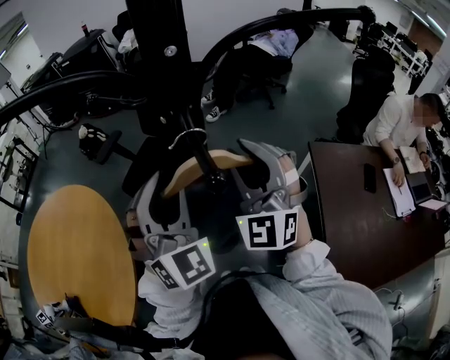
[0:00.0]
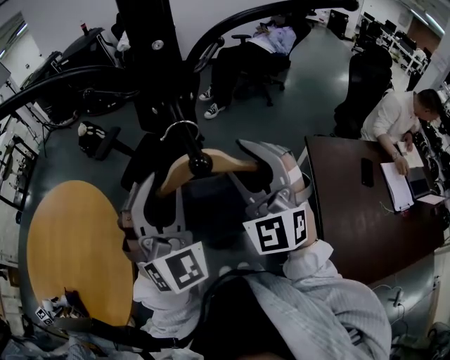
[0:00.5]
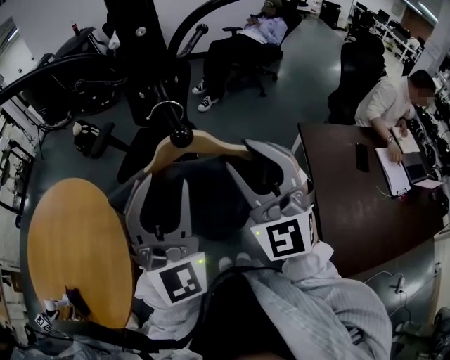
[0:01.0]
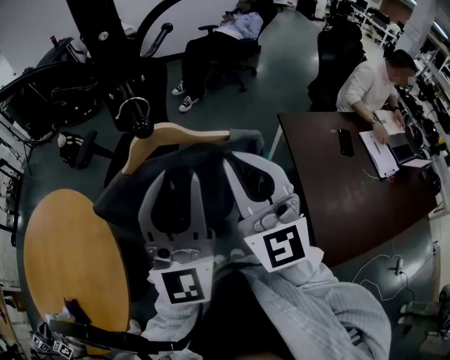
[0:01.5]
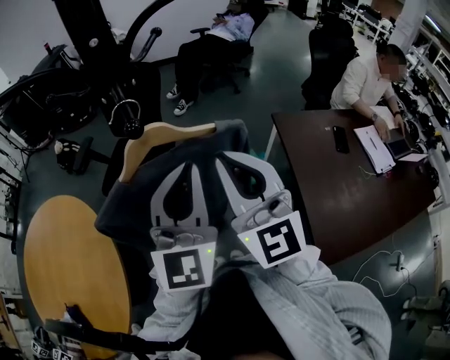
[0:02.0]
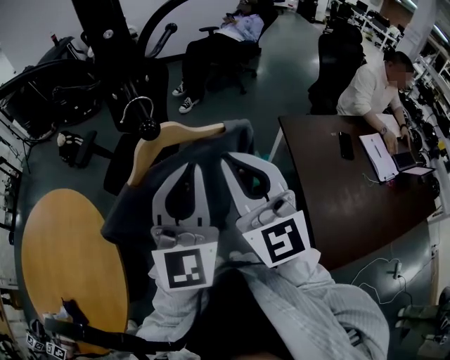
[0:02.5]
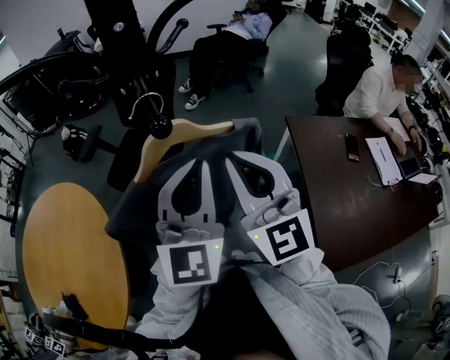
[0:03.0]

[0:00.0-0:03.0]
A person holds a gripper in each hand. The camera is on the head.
0:00.0 to 0:01.5: The right gripper moves backward, about 15 cm, swivels roughly 30 degrees, and closes. Meanwhile the left gripper shifts about 15 cm backward, to the right and upward, and rotates some 50 degrees.
0:01.5 to 0:03.0: The left gripper ends up about 5 cm from where it was, and closes up.

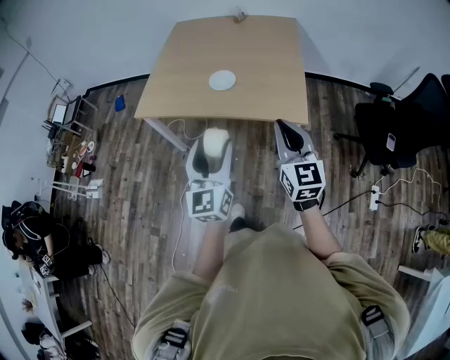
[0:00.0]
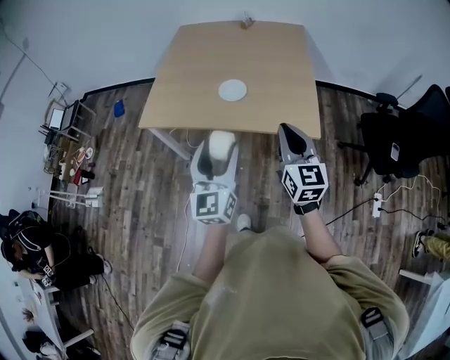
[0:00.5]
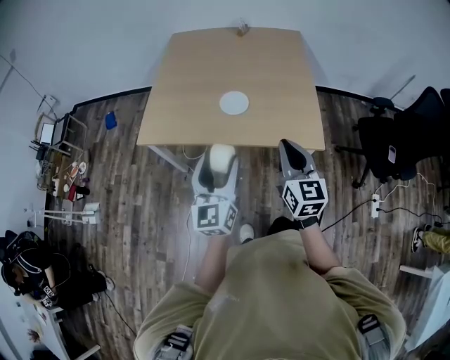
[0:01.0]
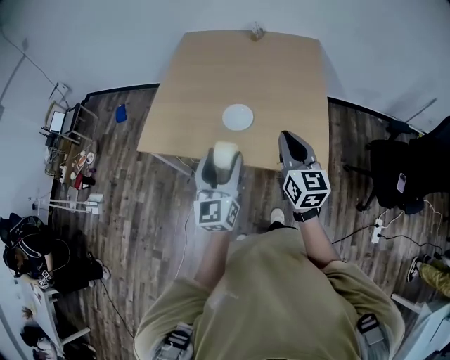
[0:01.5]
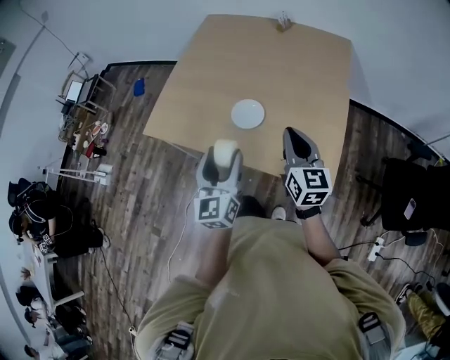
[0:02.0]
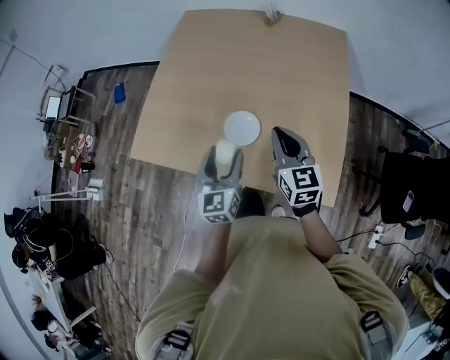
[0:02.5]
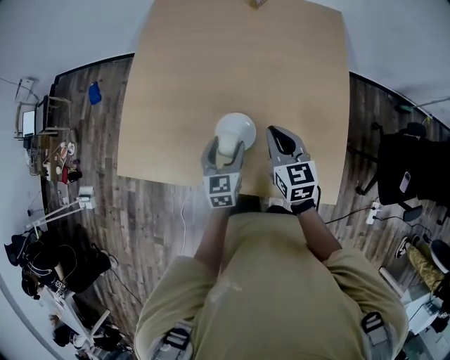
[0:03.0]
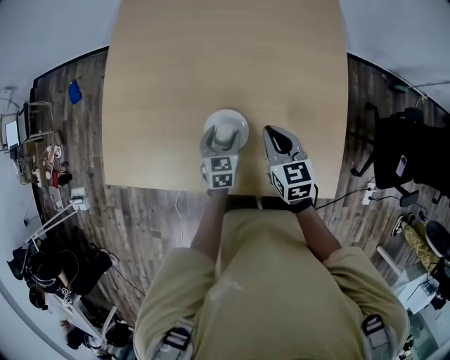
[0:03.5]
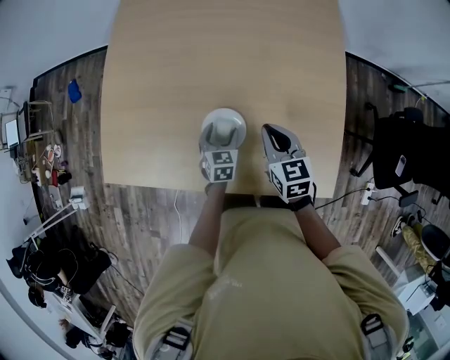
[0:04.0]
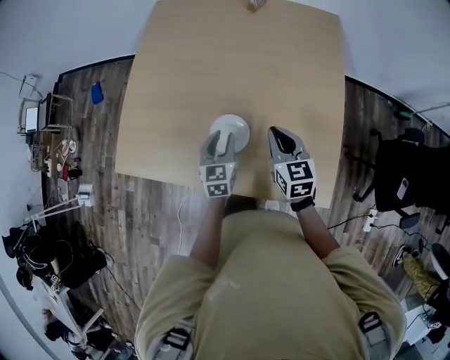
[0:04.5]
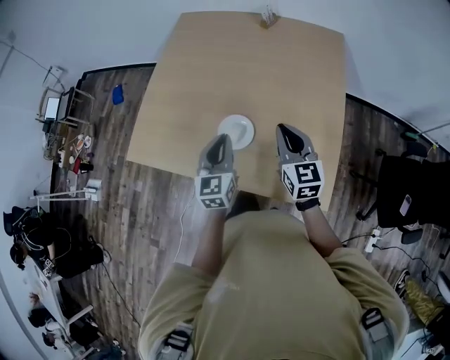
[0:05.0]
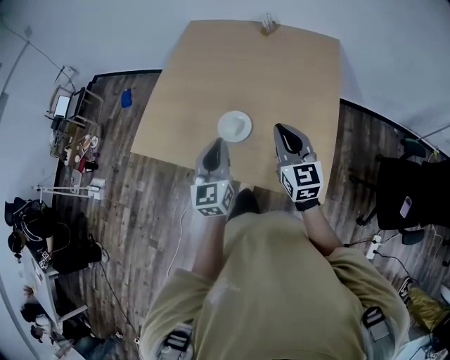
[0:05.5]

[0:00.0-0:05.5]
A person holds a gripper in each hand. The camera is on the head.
0:00.0 to 0:02.0: The grippers both shift forward by approximately 35 cm.
0:02.0 to 0:03.5: The right gripper is displaced backward by about 15 cm, and swivels some 20 degrees. The left gripper travels downward and to the right by about 20 cm, and tips its fingers downward by roughly 30 degrees.
0:03.5 to 0:05.5: The right gripper shifts approximately 10 cm forward and upward, and turns by some 30 degrees. Meanwhile the left gripper goes approximately 15 cm upward, swivels about 30 degrees, and closes.

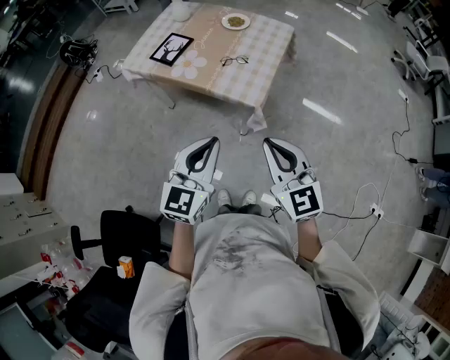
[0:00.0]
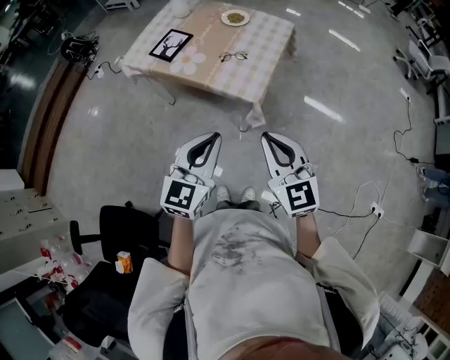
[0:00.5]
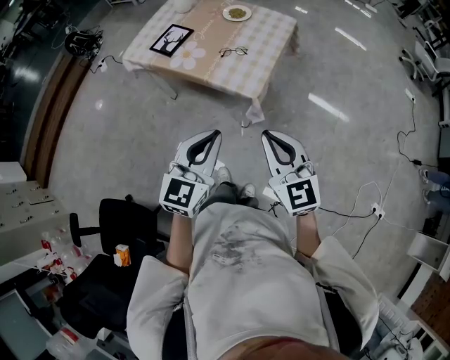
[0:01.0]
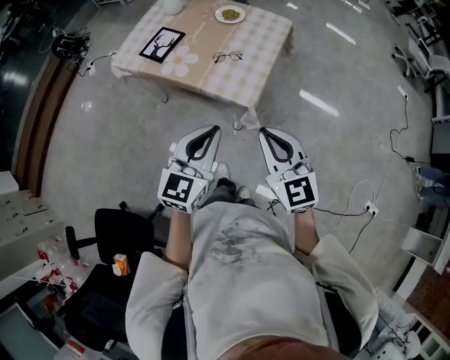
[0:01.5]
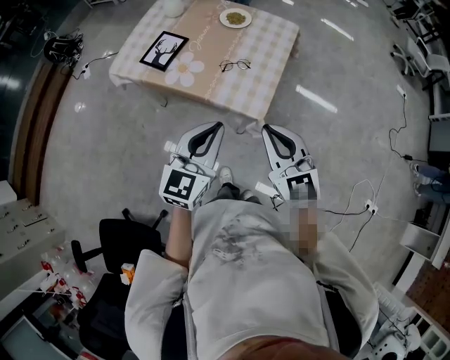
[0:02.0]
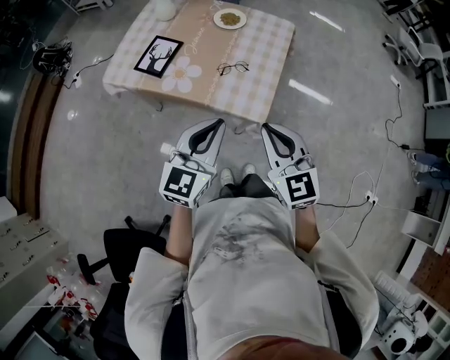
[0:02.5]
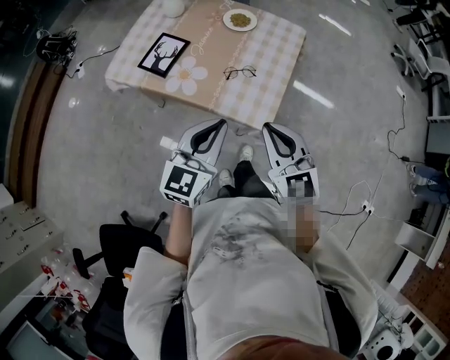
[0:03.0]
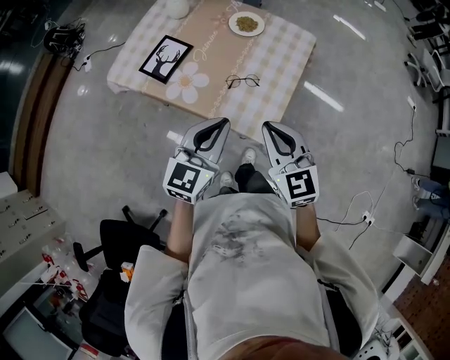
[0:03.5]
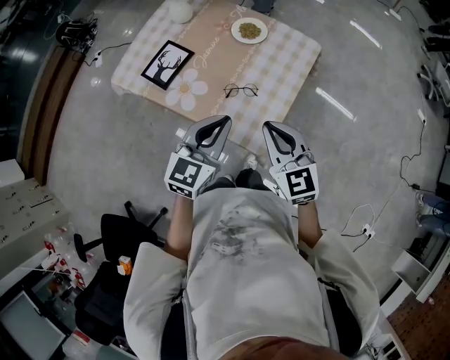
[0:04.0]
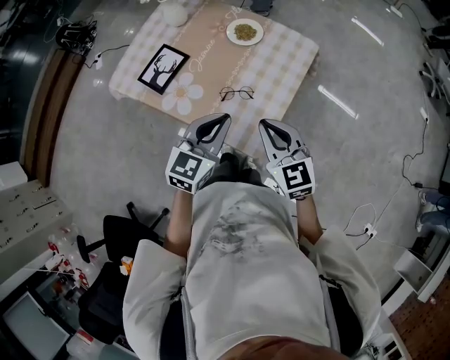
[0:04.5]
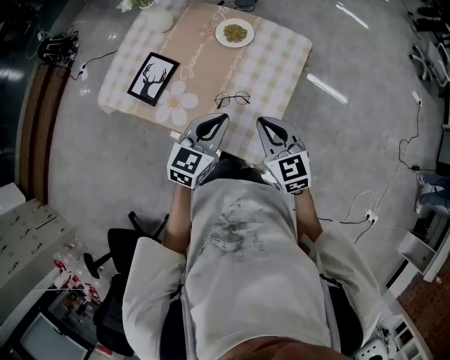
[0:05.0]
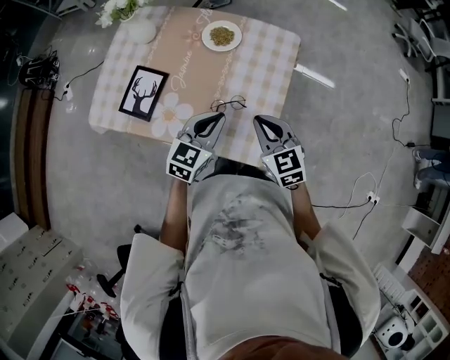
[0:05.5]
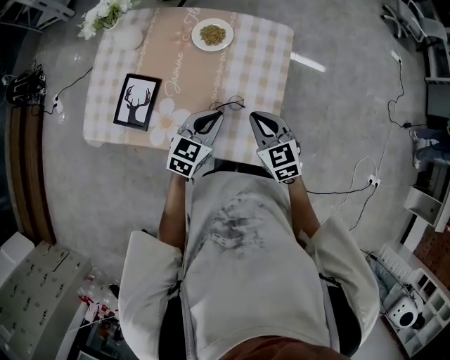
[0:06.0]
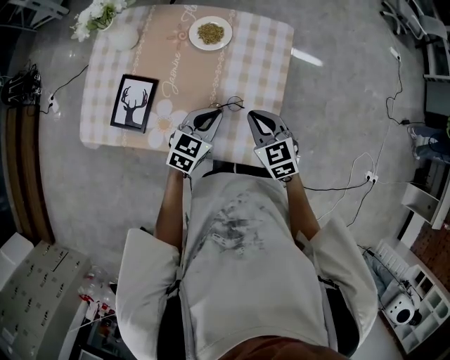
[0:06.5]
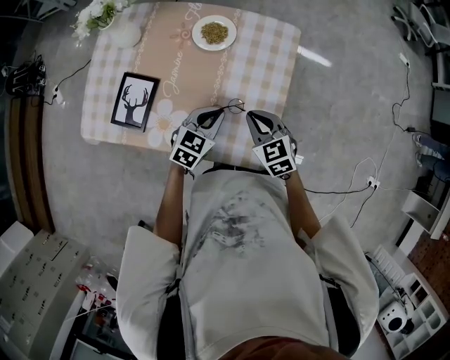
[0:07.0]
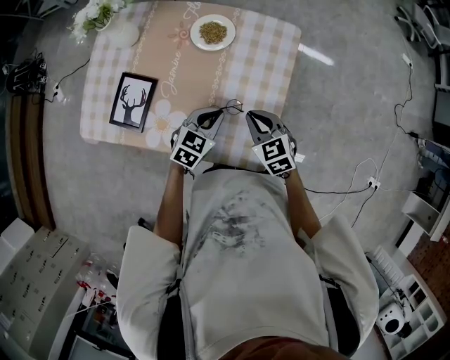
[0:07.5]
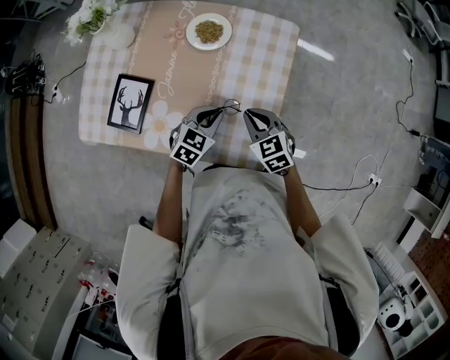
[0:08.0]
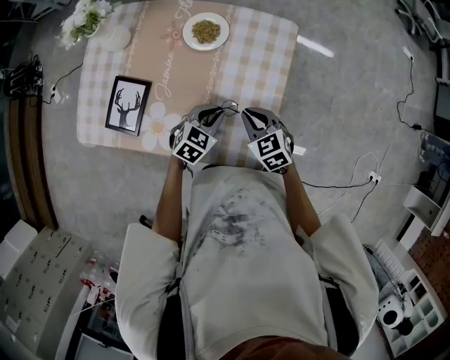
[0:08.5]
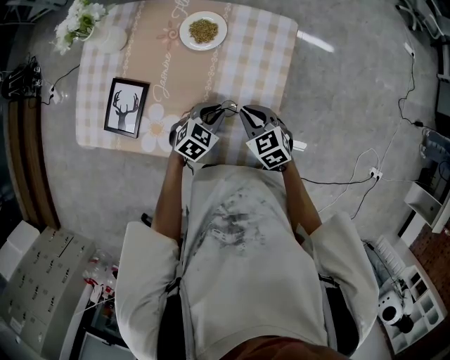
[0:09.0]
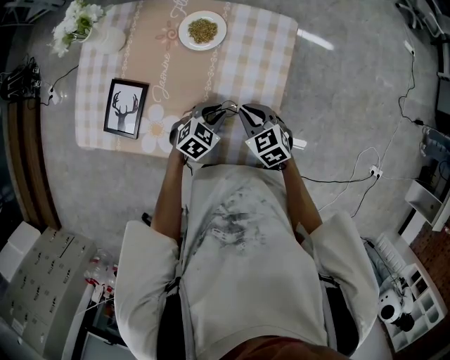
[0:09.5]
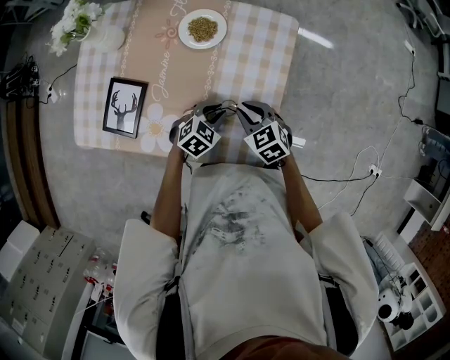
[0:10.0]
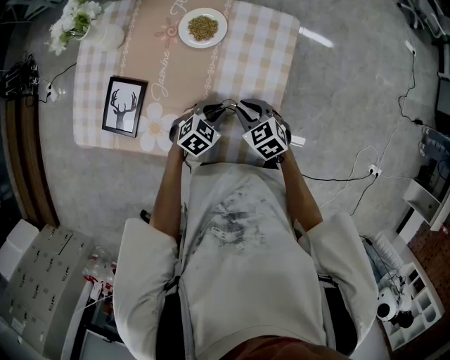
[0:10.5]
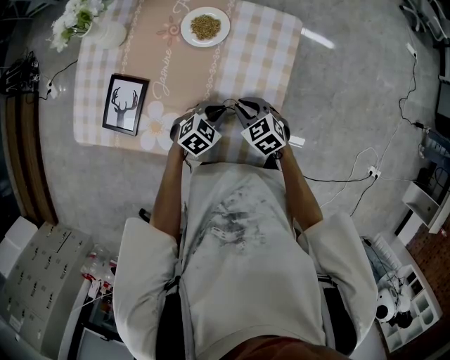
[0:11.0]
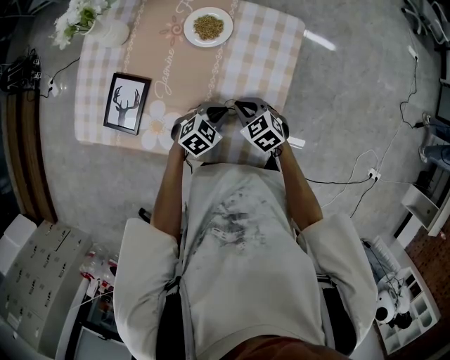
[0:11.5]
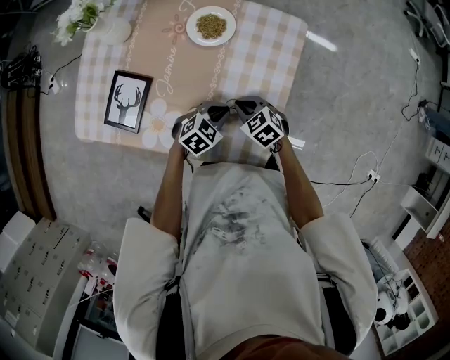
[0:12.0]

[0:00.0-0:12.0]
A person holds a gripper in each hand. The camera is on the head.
0:00.0 to 0:02.0: The grippers both shift forward by about 15 cm.
0:02.0 to 0:04.0: The two grippers go about 20 cm forward.
0:04.0 to 0:06.0: The grippers both shift downward and forward by roughly 20 cm. The right gripper swivels about 20 degrees; the left gripper turns by about 30 degrees.
0:06.0 to 0:08.0: Both grippers move downward, roughly 10 cm.
0:08.0 to 0:10.0: The left gripper goes approximately 5 cm downward.
0:10.0 to 0:12.0: The right gripper shifts roughly 5 cm downward.

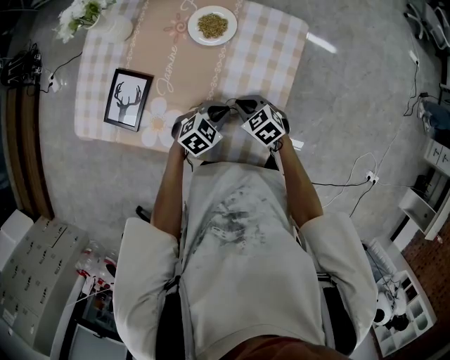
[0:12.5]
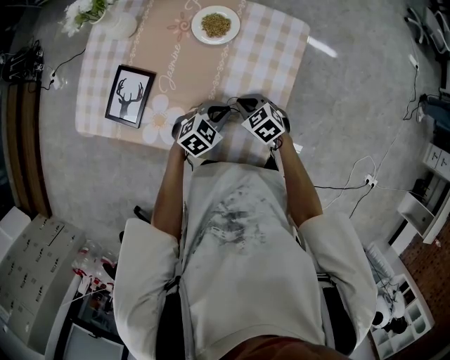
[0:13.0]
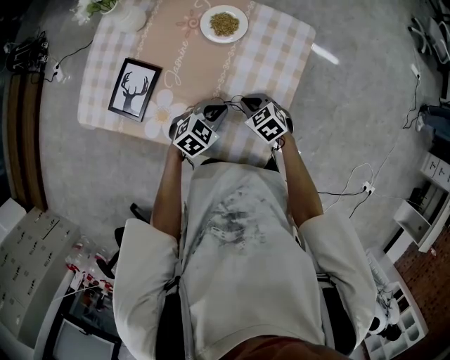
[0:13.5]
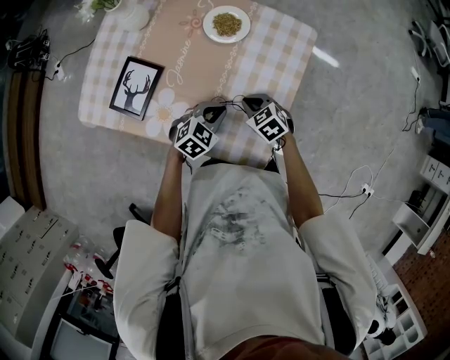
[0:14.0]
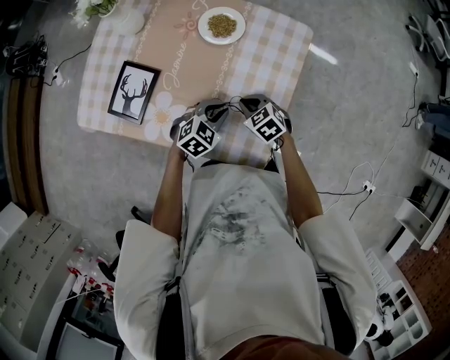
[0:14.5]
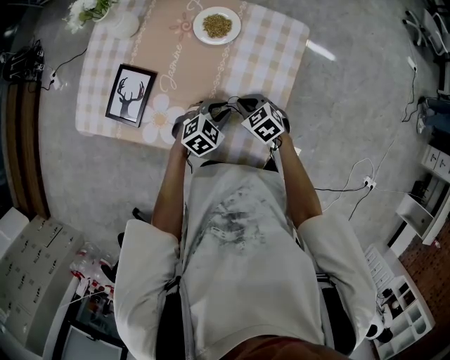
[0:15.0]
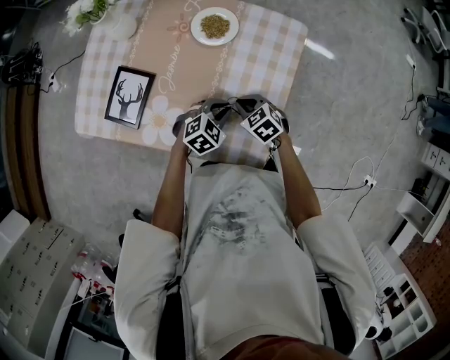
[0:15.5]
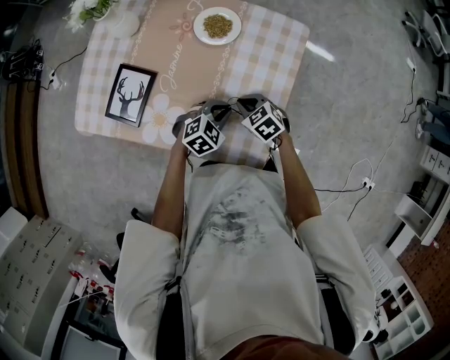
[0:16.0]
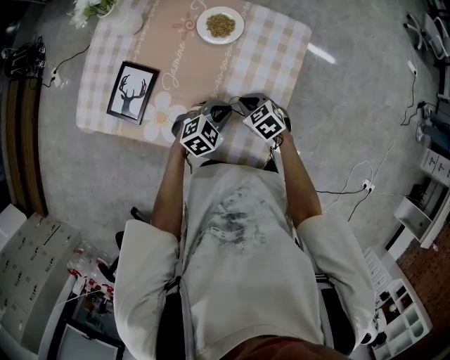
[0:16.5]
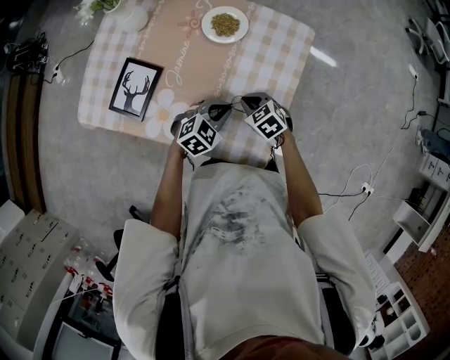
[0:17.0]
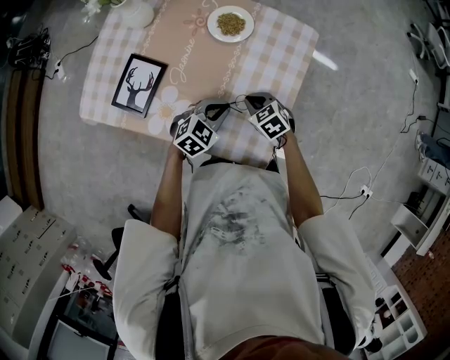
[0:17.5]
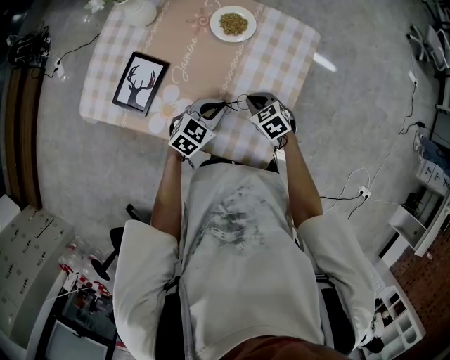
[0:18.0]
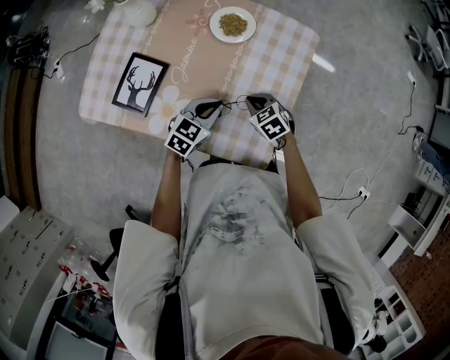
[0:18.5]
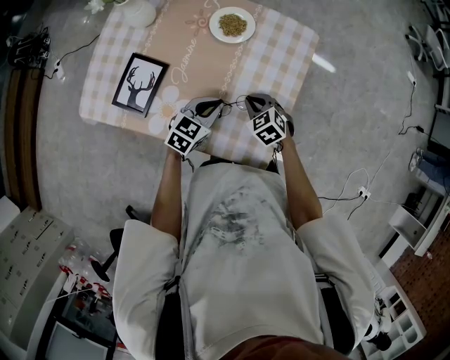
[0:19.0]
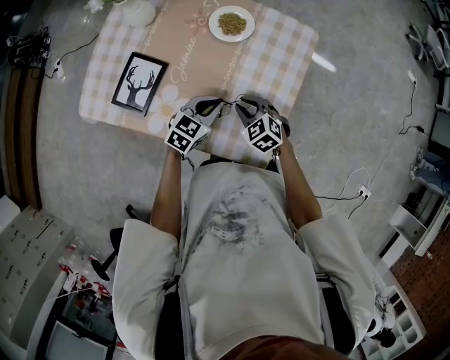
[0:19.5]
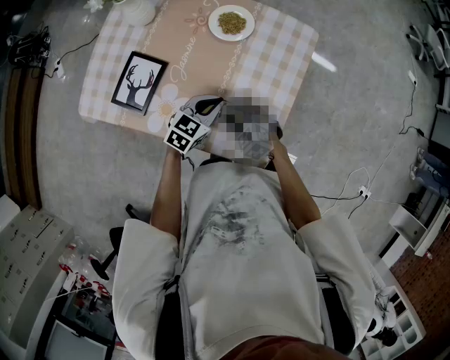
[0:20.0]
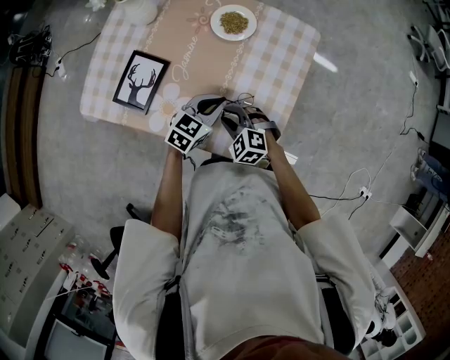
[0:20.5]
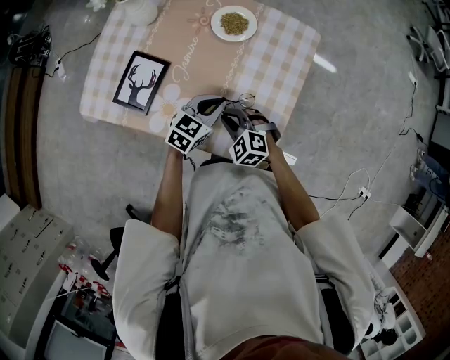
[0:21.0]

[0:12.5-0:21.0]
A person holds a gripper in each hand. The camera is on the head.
0:12.5 to 0:16.5: The grippers make only small movements.
0:16.5 to 0:19.0: The left gripper heads to the left, covering some 5 cm, and changes its angle by approximately 30 degrees.
0:19.0 to 0:21.0: The right gripper heads to the left and backward, covering roughly 10 cm, and rotates some 30 degrees.
